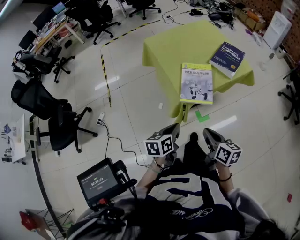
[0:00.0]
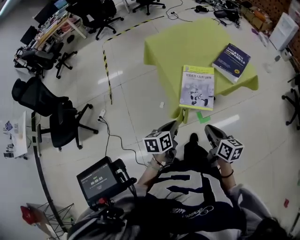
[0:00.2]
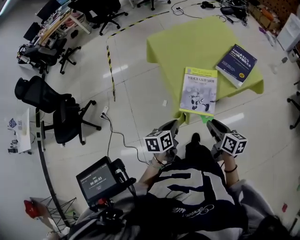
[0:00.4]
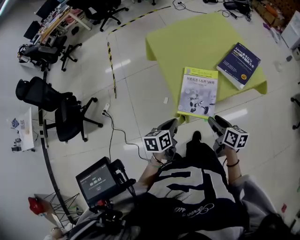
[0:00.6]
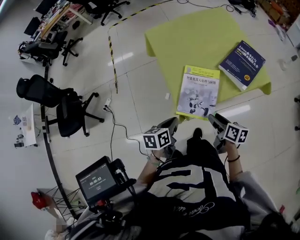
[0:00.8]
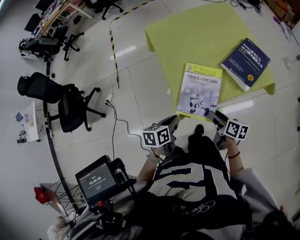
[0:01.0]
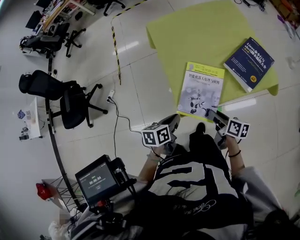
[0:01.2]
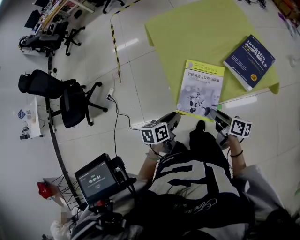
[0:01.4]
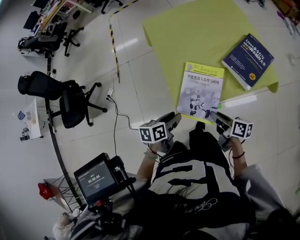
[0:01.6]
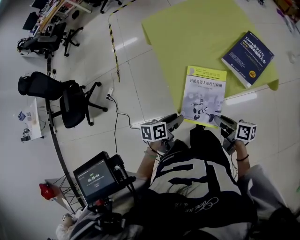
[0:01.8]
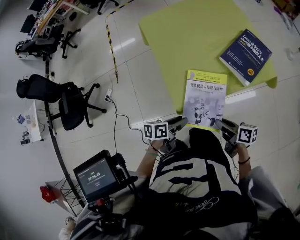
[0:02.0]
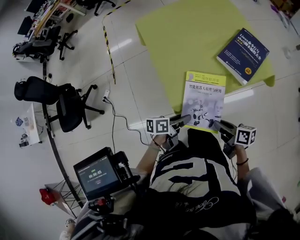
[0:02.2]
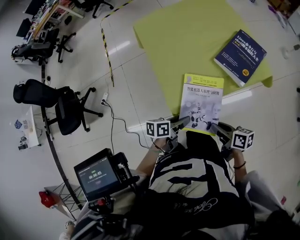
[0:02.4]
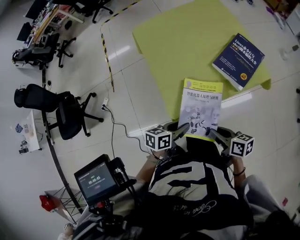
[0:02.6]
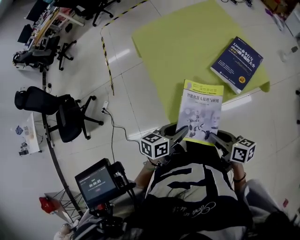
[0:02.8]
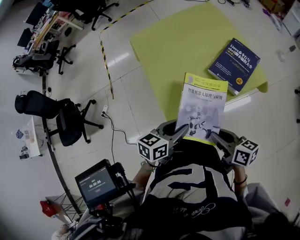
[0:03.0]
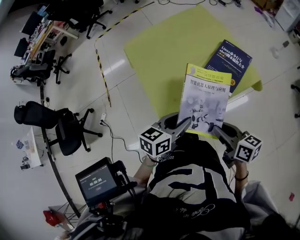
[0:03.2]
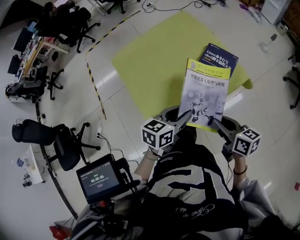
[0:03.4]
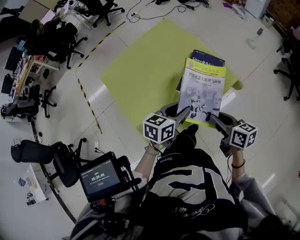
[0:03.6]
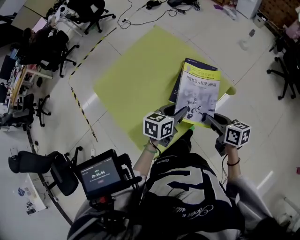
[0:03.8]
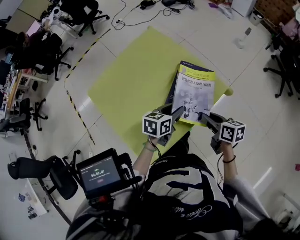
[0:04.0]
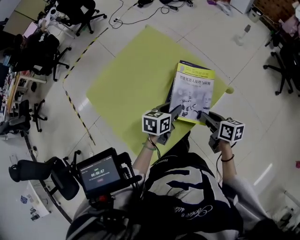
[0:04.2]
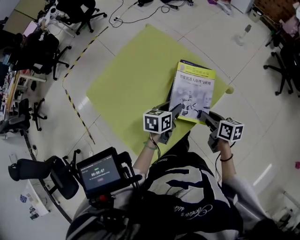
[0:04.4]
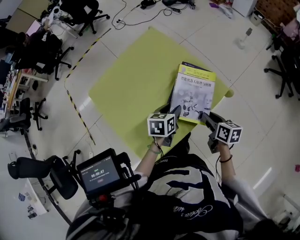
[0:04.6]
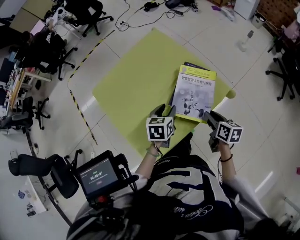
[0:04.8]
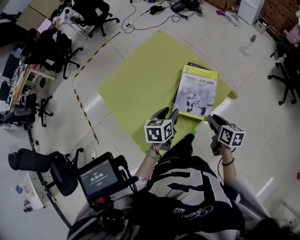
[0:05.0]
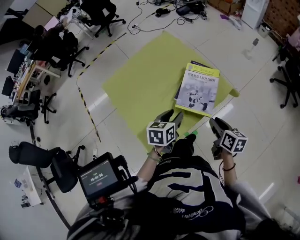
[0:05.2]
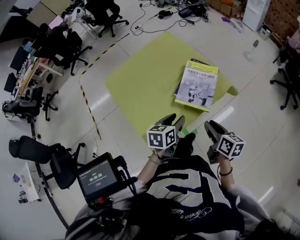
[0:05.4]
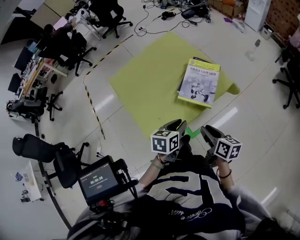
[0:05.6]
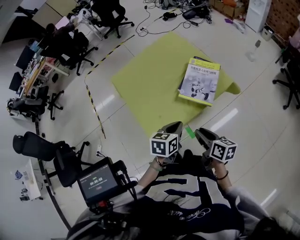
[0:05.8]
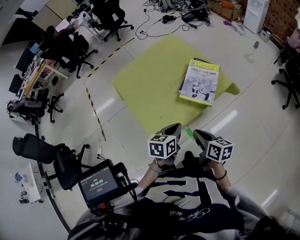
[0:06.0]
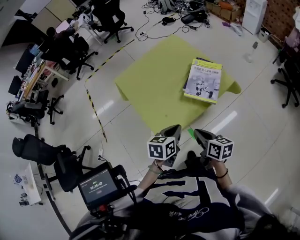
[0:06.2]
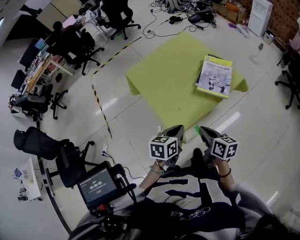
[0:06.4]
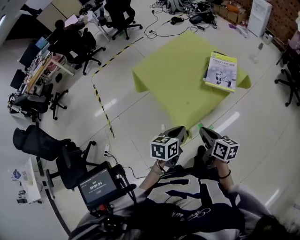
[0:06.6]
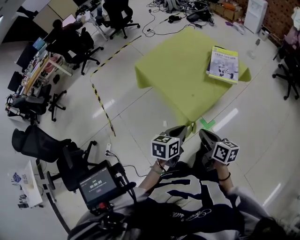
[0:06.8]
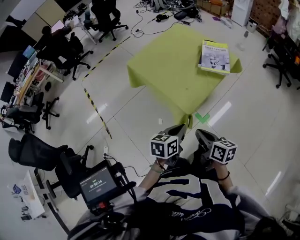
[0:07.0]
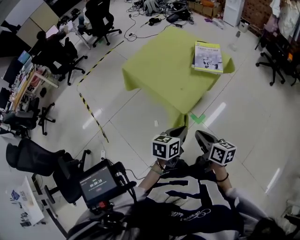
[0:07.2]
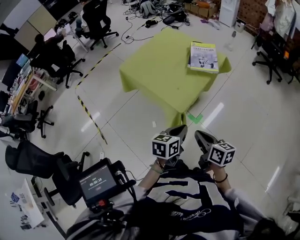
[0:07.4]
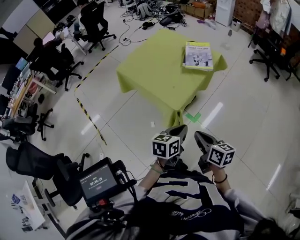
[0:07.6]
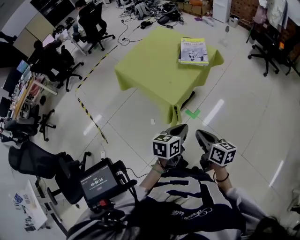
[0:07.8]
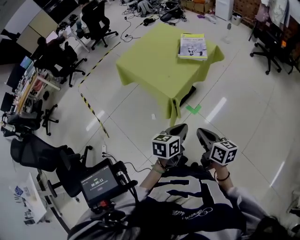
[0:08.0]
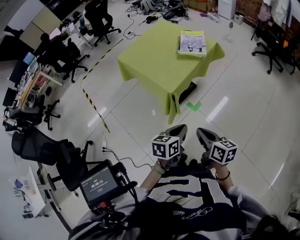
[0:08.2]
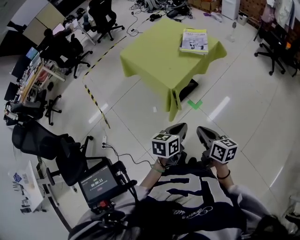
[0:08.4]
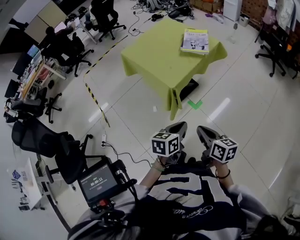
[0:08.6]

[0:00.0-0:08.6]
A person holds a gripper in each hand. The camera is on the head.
0:00.0 to 0:01.4: The left gripper shifts roughly 15 cm forward and downward. Meanwhile the right gripper is displaced forward, downward and to the right by approximately 25 cm, changes its angle by roughly 30 degrees, and opens and closes again.
0:01.4 to 0:02.8: The right gripper moves upward and backward, about 10 cm; the left gripper shifts about 10 cm to the right and upward, and rotates approximately 20 degrees.
0:02.8 to 0:04.4: The right gripper moves about 25 cm, and rotates about 40 degrees. Meanwhile the left gripper reaches approximately 5 cm upward, then returns, and rotates roughly 20 degrees.
0:04.4 to 0:05.8: The grippers both shift backward by roughly 20 cm. The left gripper closes its fingers.
0:05.8 to 0:07.2: The grippers both shift backward and to the left by approximately 30 cm. The right gripper closes its fingers.
0:07.2 to 0:08.6: Both grippers move backward and to the right, roughly 20 cm.

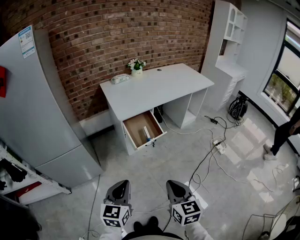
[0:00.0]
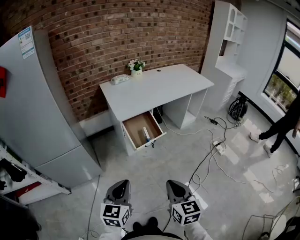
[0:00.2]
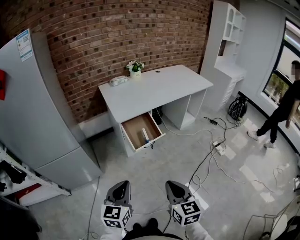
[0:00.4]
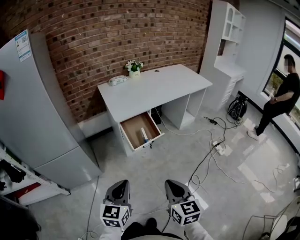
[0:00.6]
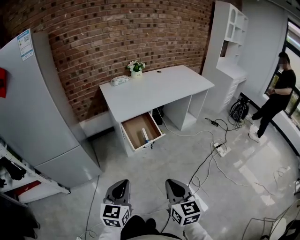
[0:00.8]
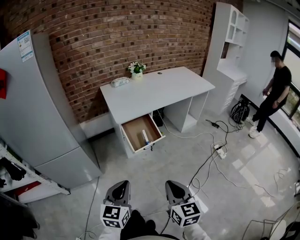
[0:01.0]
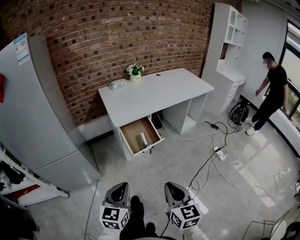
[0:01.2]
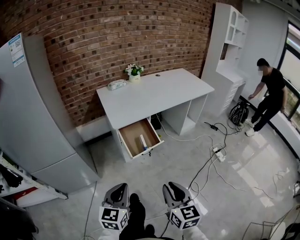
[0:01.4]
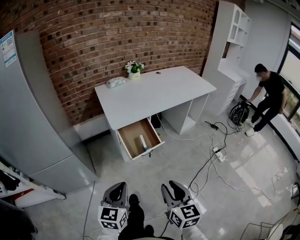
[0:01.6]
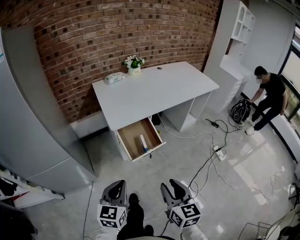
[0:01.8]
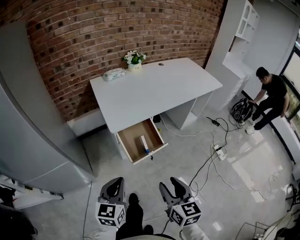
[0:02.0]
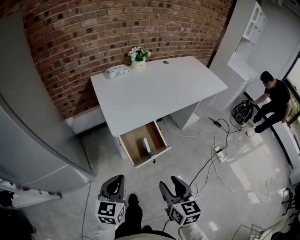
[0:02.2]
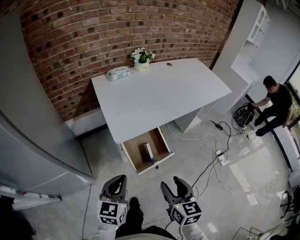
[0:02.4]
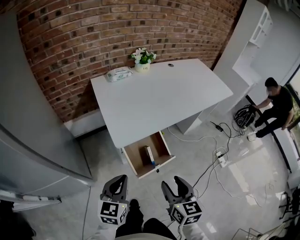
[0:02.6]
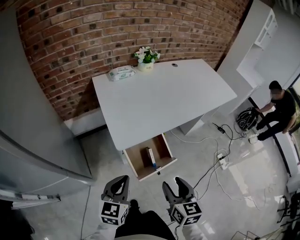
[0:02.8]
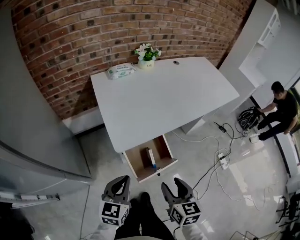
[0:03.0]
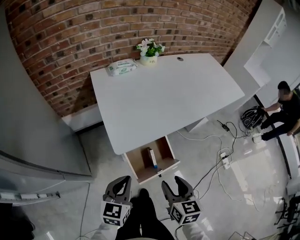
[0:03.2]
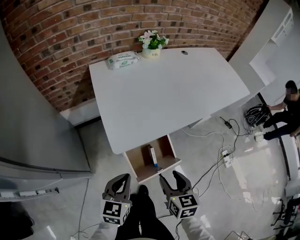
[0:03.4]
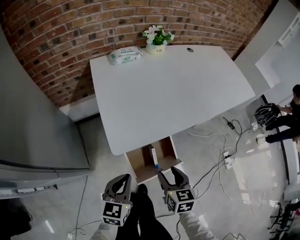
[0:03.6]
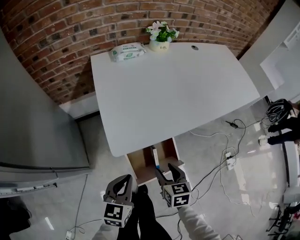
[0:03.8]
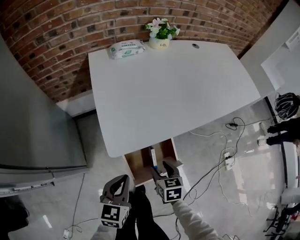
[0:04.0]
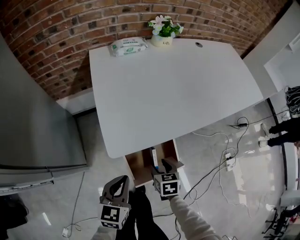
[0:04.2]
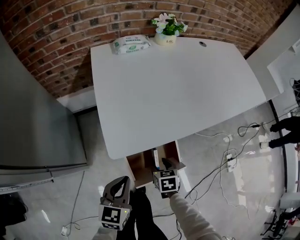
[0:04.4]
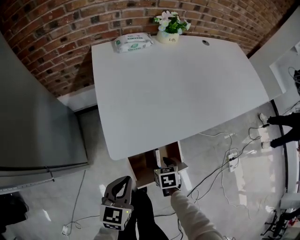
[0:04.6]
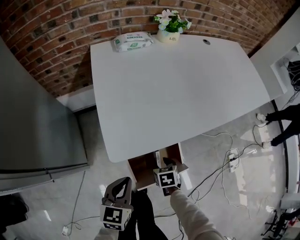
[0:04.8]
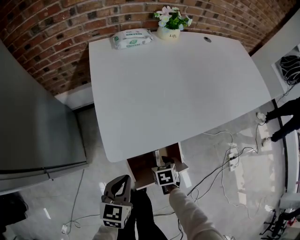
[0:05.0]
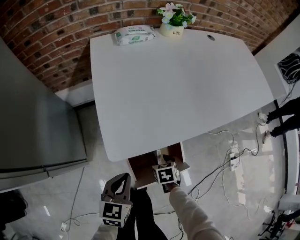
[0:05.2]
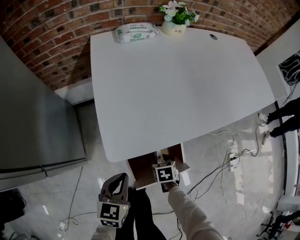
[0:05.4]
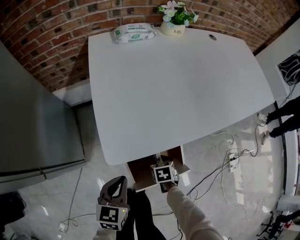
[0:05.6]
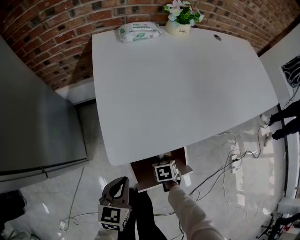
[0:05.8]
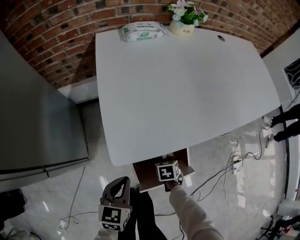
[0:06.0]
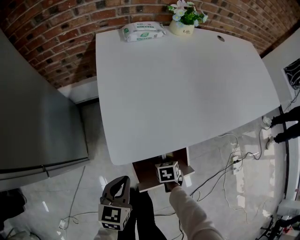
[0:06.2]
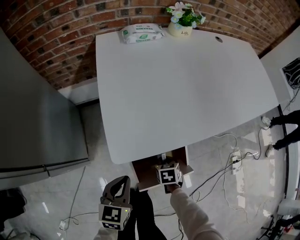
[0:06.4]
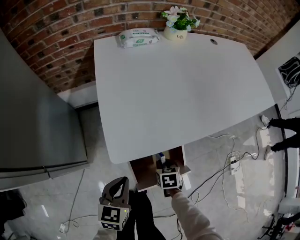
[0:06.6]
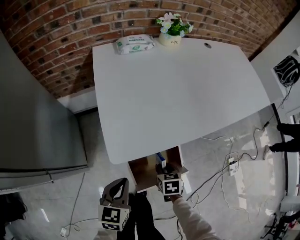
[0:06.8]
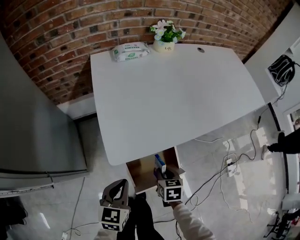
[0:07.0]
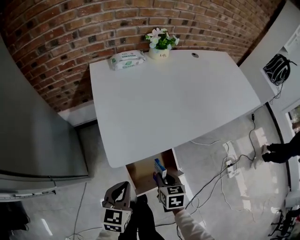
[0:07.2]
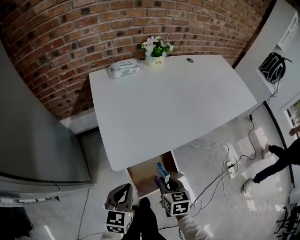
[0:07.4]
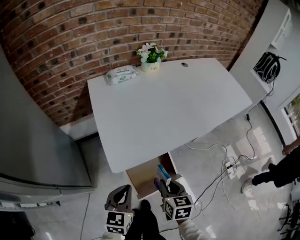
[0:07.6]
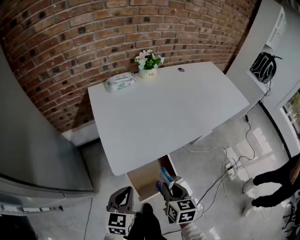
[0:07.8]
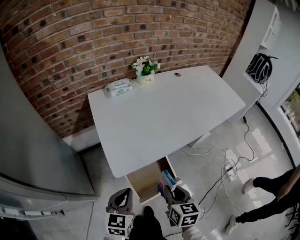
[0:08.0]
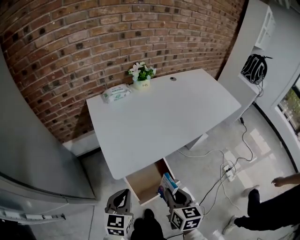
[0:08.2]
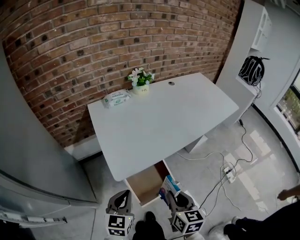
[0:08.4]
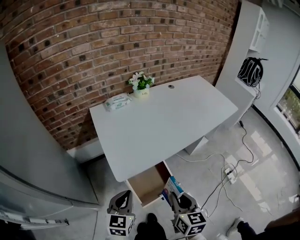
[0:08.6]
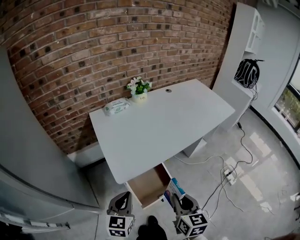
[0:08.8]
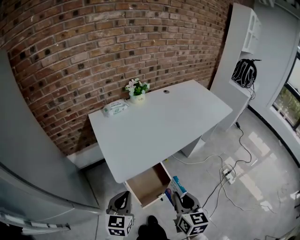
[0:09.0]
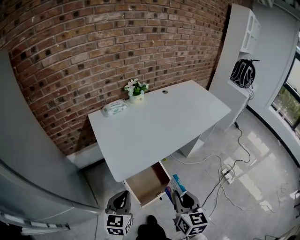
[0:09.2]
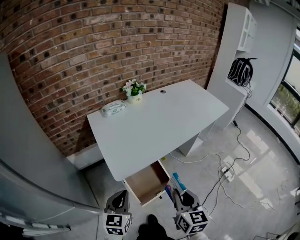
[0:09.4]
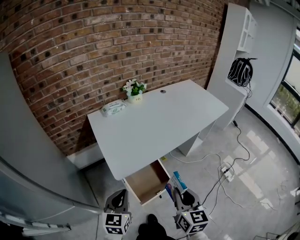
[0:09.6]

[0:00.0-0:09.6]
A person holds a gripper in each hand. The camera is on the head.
0:00.0 to 0:01.6: Both grippers travel together forward, some 10 cm. The right gripper opens up.
0:01.6 to 0:03.2: Both grippers move forward, roughly 35 cm. The right gripper opens up.
0:03.2 to 0:04.8: The left gripper travels downward and forward by roughly 15 cm. The right gripper moves downward and forward, some 30 cm, and tips its fingers downward by some 30 degrees.
0:04.8 to 0:06.4: The right gripper closes its fingers.
0:06.4 to 0:08.0: The right gripper is displaced upward by approximately 30 cm, and points its fingers some 30 degrees further upward; the left gripper heads upward, covering roughly 15 cm.
0:08.0 to 0:09.6: The left gripper goes roughly 5 cm upward, while the right gripper goes approximately 15 cm upward and backward.

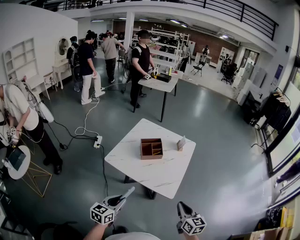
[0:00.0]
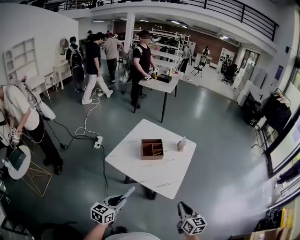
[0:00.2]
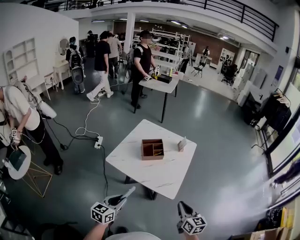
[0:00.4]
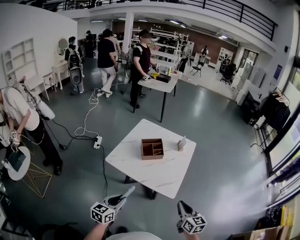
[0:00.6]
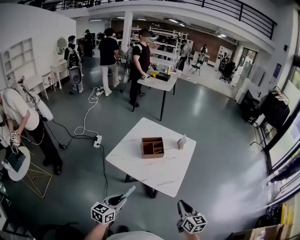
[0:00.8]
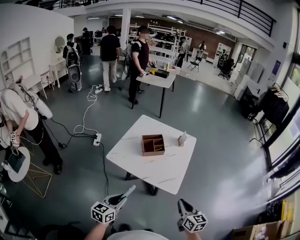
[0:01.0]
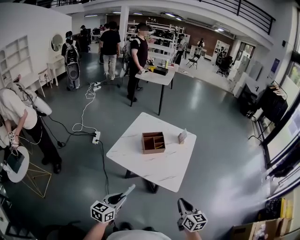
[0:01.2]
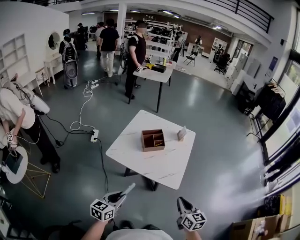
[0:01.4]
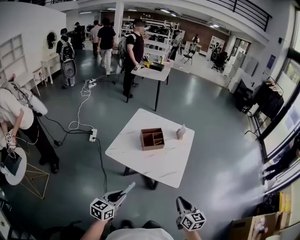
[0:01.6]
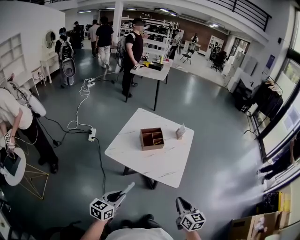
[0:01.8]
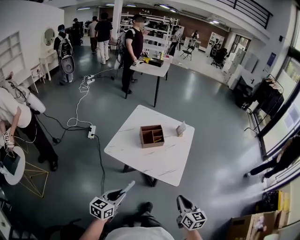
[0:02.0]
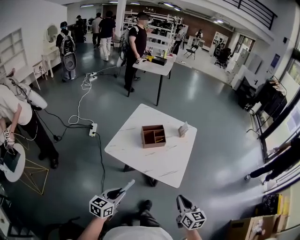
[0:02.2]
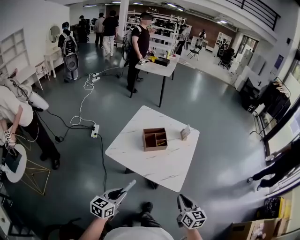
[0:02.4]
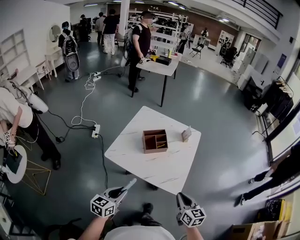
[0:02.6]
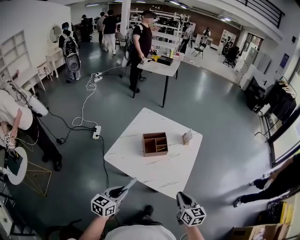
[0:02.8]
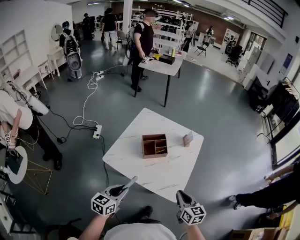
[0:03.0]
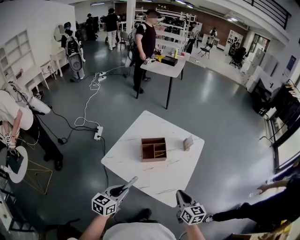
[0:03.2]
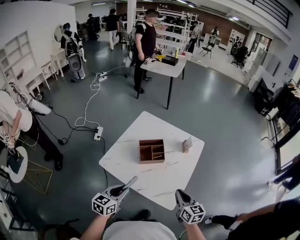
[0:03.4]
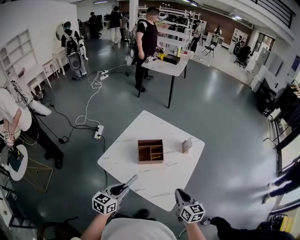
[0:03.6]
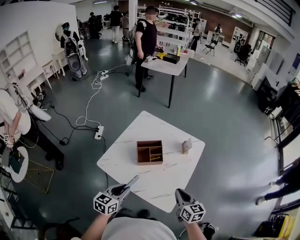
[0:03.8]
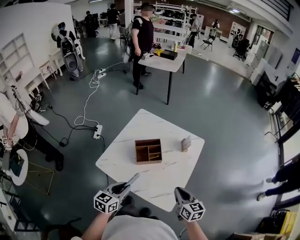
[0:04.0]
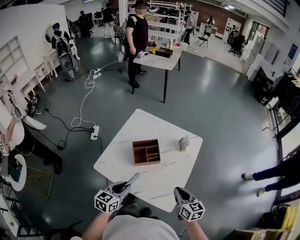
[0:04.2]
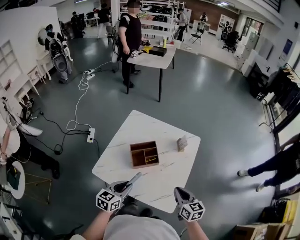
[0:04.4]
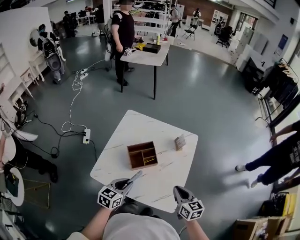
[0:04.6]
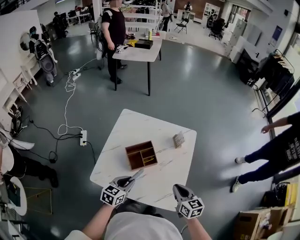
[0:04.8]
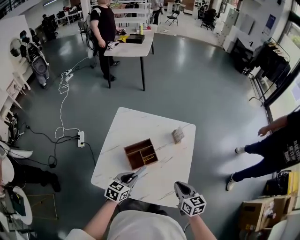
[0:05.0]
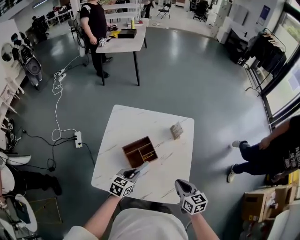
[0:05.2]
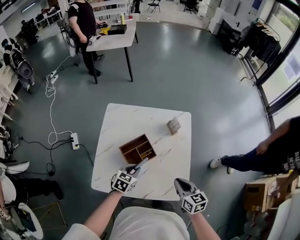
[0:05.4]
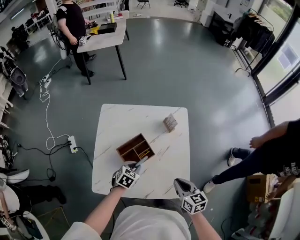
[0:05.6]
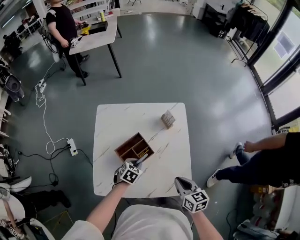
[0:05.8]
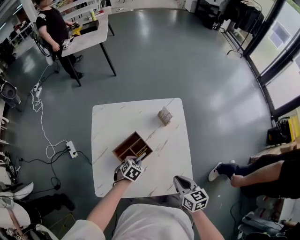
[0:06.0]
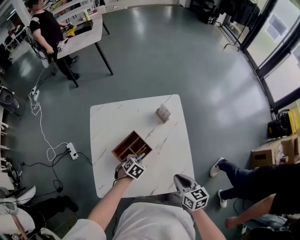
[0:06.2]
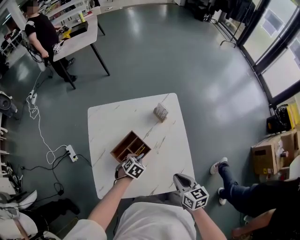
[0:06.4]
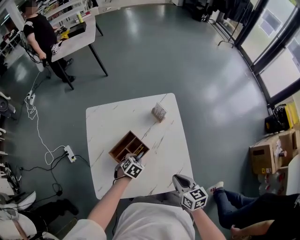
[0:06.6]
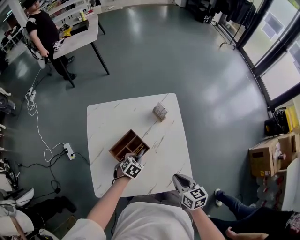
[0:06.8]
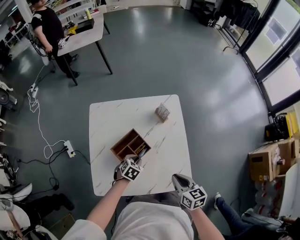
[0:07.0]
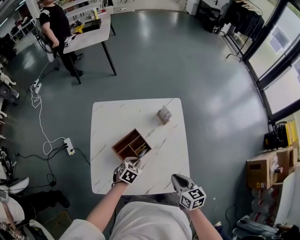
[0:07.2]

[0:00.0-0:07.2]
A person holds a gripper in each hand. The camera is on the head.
0:00.0 to 0:01.4: Both grippers travel together to the left, about 5 cm.
0:01.4 to 0:02.8: Both grippers travel together forward, some 15 cm.
0:02.8 to 0:04.4: The right gripper goes some 15 cm forward, while the left gripper heads forward and to the right, covering some 20 cm.
0:04.4 to 0:05.8: The right gripper moves approximately 5 cm, and changes its angle by roughly 20 degrees. The left gripper heads forward and downward, covering approximately 25 cm, and tips its fingers downward by about 30 degrees.
0:05.8 to 0:07.2: The grippers stay close to where they were, moving slightly.
